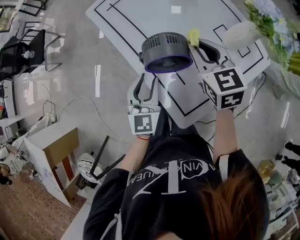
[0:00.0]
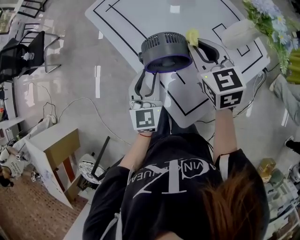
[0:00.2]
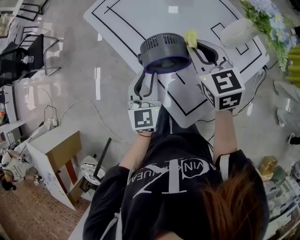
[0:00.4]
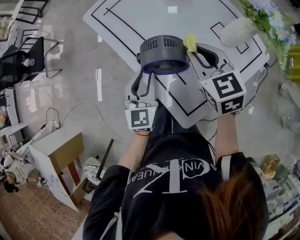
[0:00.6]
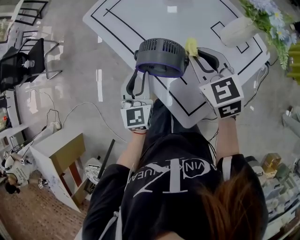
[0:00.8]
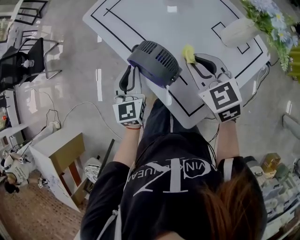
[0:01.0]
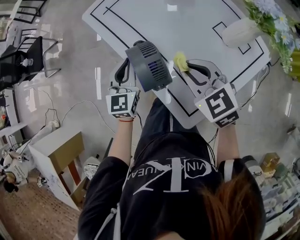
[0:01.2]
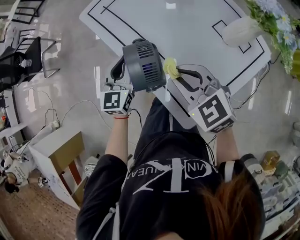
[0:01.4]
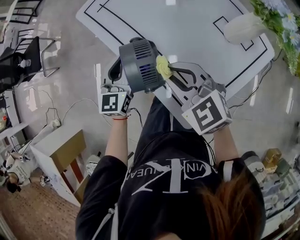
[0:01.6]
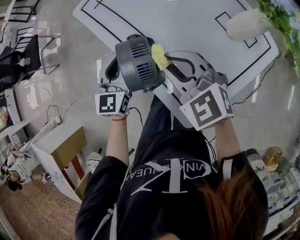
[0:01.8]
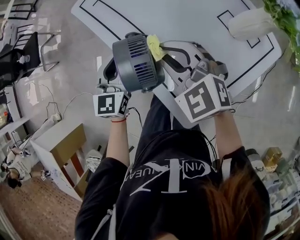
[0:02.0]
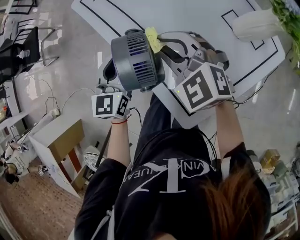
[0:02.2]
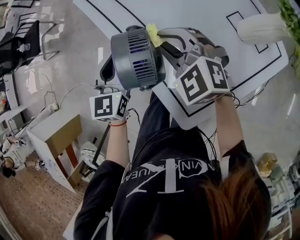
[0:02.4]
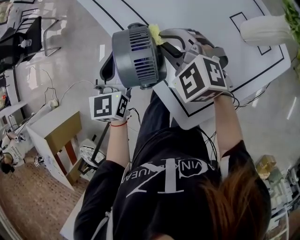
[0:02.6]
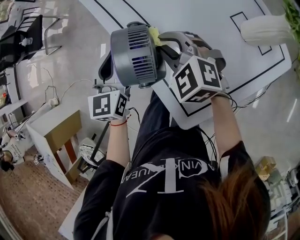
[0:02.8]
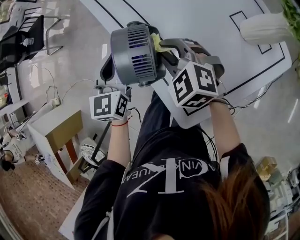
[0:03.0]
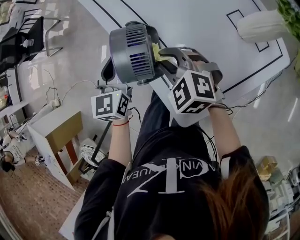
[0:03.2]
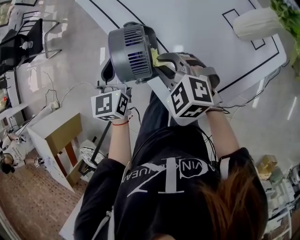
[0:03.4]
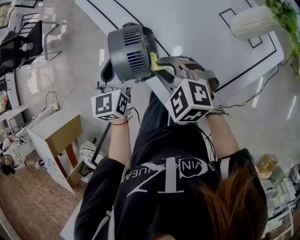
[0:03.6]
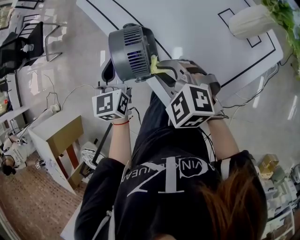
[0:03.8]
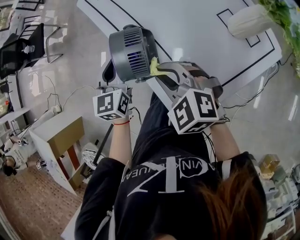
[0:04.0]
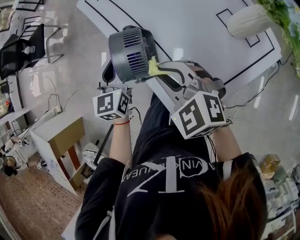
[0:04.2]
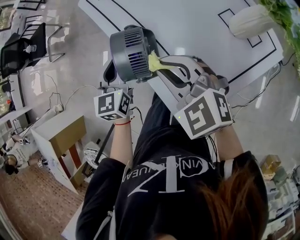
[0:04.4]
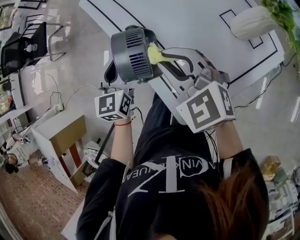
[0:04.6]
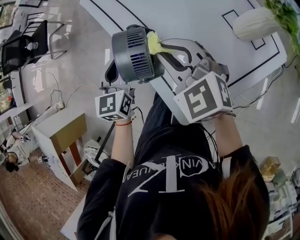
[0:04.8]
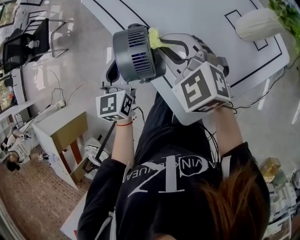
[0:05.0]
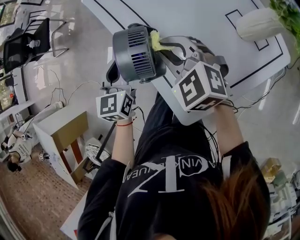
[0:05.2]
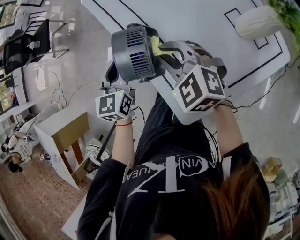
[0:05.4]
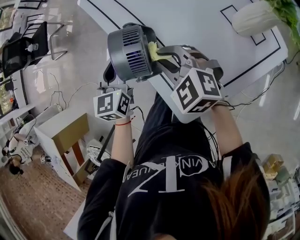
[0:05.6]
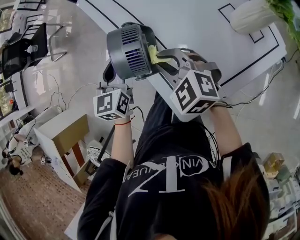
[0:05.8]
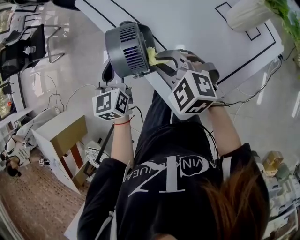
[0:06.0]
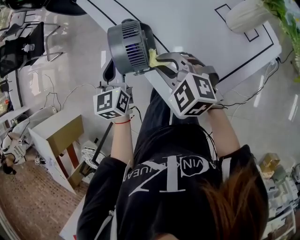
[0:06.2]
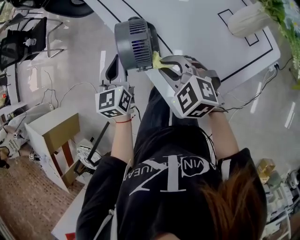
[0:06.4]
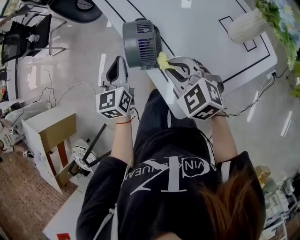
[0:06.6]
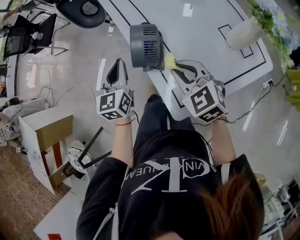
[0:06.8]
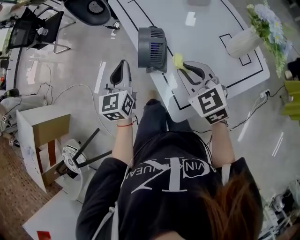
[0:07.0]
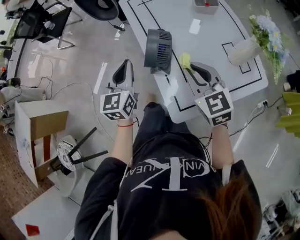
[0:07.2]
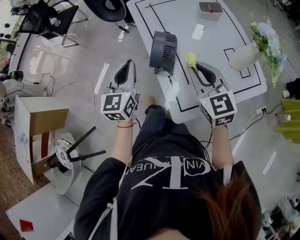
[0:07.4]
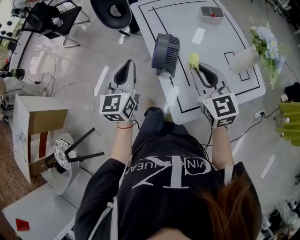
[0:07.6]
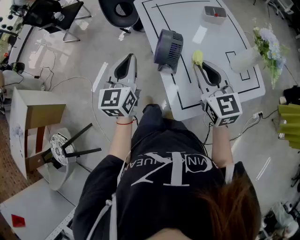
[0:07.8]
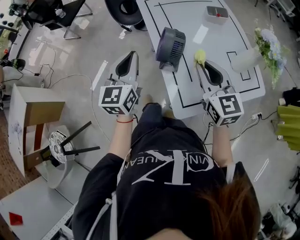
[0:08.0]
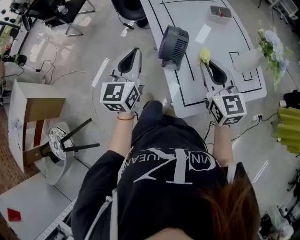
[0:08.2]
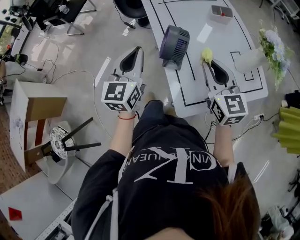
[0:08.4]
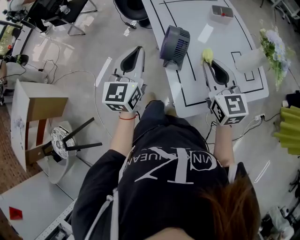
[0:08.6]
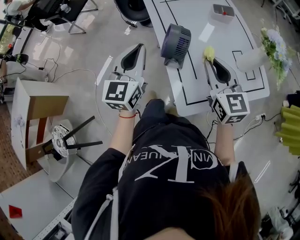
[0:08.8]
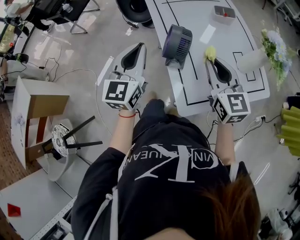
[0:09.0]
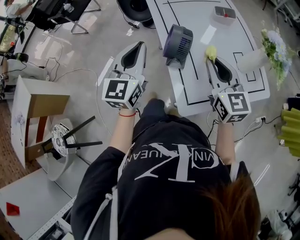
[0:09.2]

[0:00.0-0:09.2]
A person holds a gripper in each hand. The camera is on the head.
0:00.0 to 0:01.6: The left gripper goes about 10 cm forward and to the left, and closes its fingers. Meanwhile the right gripper moves to the left and backward, some 10 cm, and changes its angle by approximately 20 degrees.
0:01.6 to 0:03.0: The right gripper travels downward by about 10 cm.
0:03.0 to 0:04.6: The right gripper goes about 10 cm upward.
0:04.6 to 0:06.2: The right gripper heads downward, covering some 10 cm.
0:06.2 to 0:07.6: The left gripper travels upward, backward and to the left by roughly 15 cm. The right gripper goes about 15 cm upward, and turns by roughly 30 degrees.
0:07.6 to 0:09.2: The left gripper goes approximately 5 cm upward.

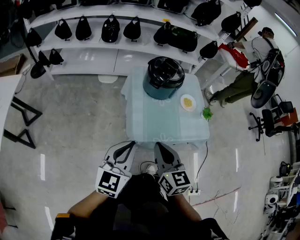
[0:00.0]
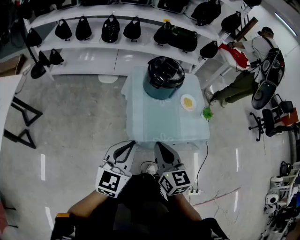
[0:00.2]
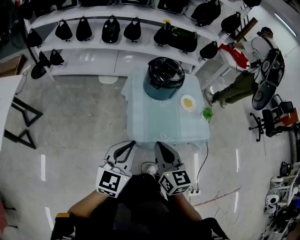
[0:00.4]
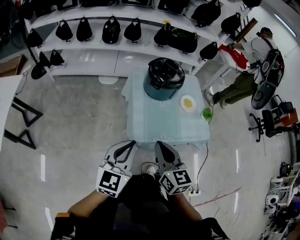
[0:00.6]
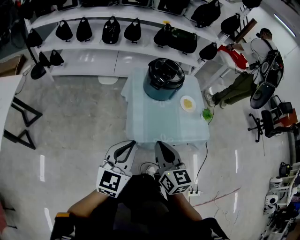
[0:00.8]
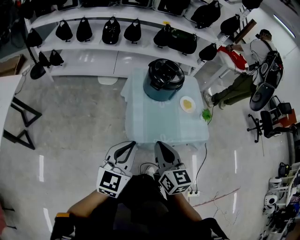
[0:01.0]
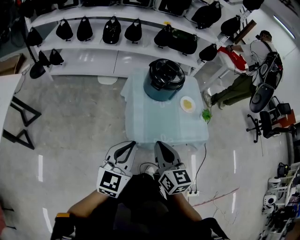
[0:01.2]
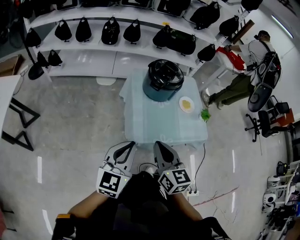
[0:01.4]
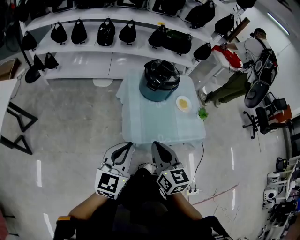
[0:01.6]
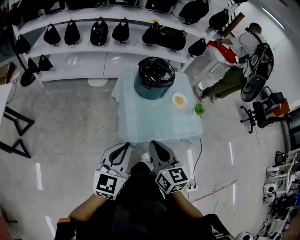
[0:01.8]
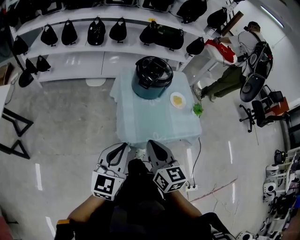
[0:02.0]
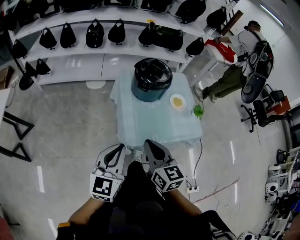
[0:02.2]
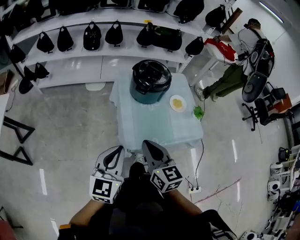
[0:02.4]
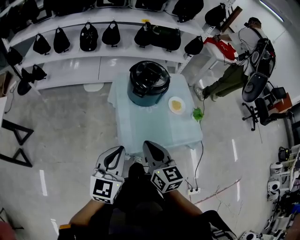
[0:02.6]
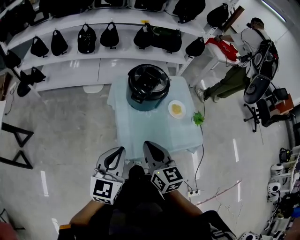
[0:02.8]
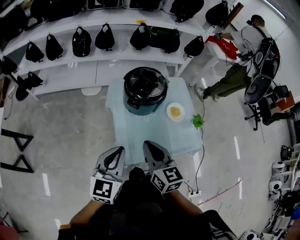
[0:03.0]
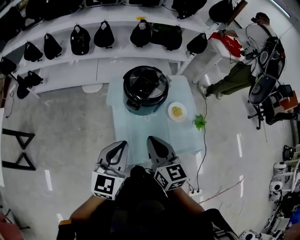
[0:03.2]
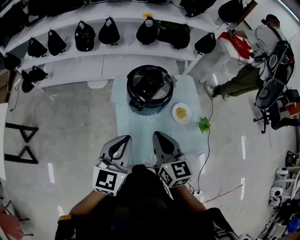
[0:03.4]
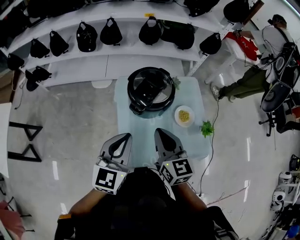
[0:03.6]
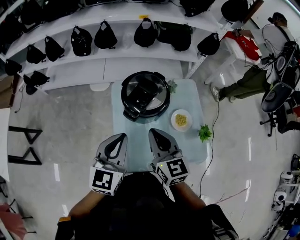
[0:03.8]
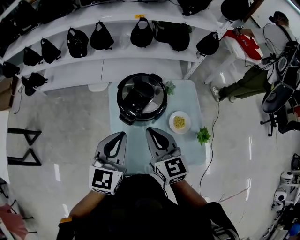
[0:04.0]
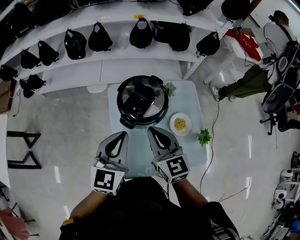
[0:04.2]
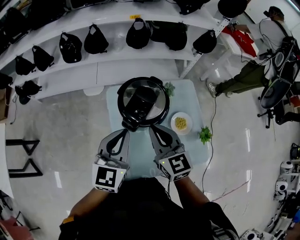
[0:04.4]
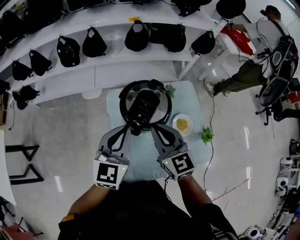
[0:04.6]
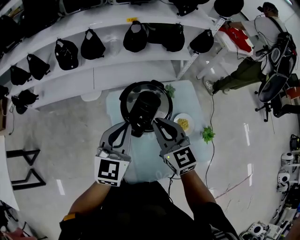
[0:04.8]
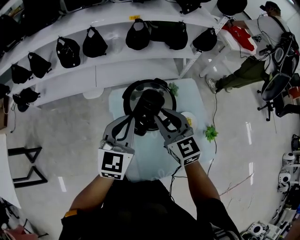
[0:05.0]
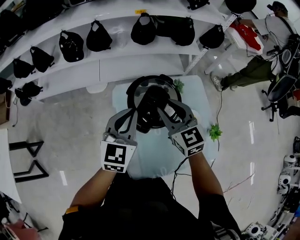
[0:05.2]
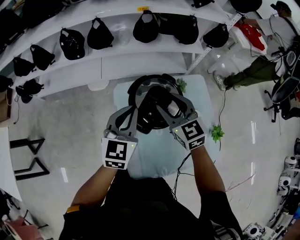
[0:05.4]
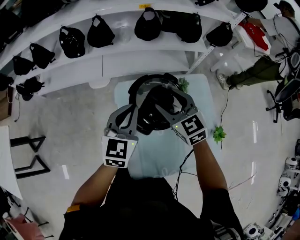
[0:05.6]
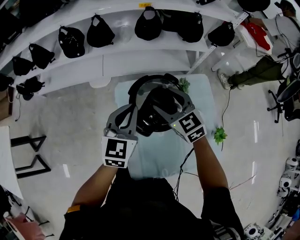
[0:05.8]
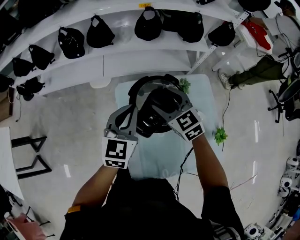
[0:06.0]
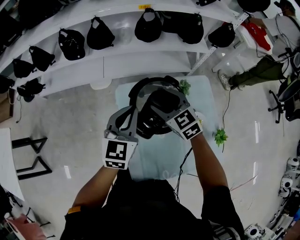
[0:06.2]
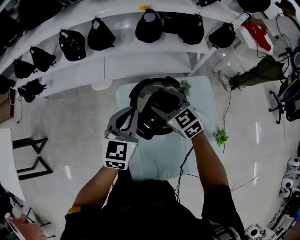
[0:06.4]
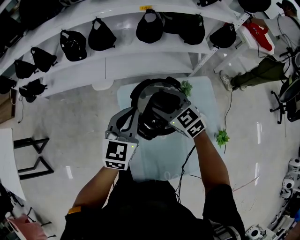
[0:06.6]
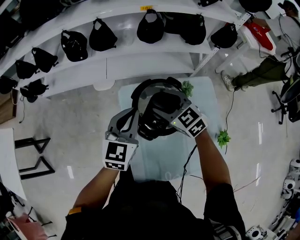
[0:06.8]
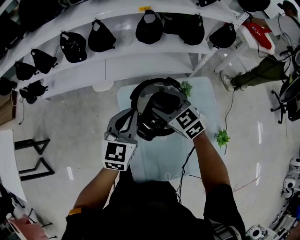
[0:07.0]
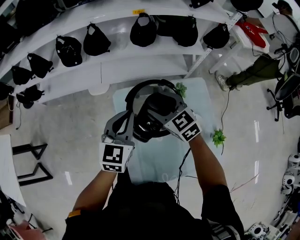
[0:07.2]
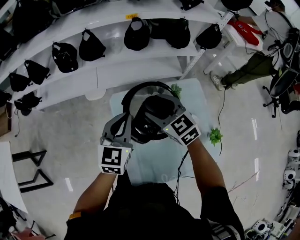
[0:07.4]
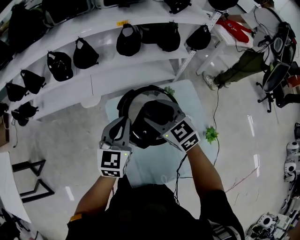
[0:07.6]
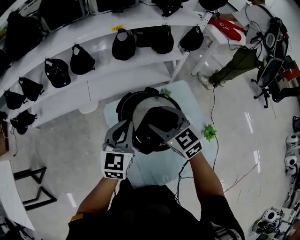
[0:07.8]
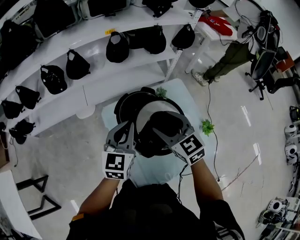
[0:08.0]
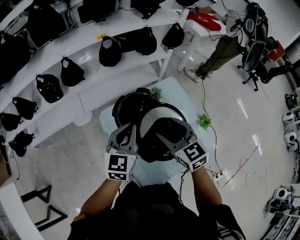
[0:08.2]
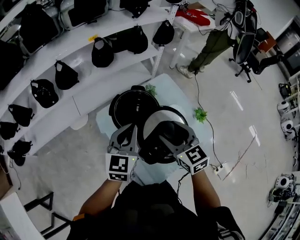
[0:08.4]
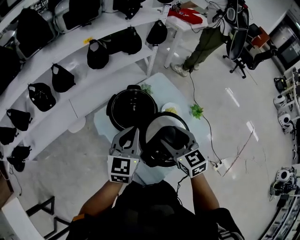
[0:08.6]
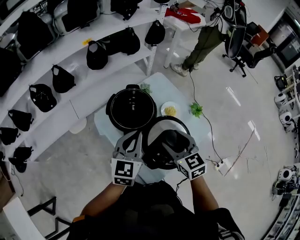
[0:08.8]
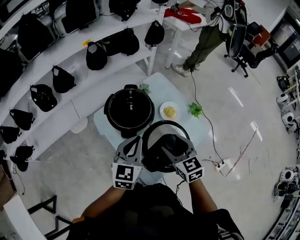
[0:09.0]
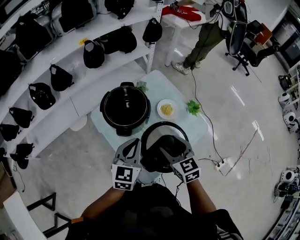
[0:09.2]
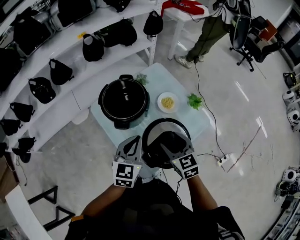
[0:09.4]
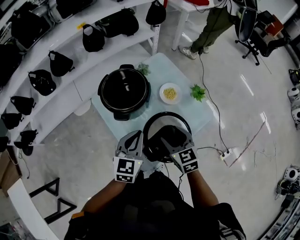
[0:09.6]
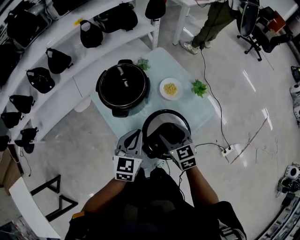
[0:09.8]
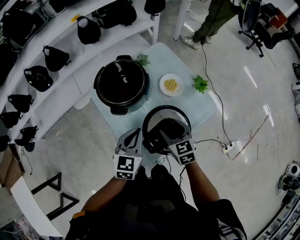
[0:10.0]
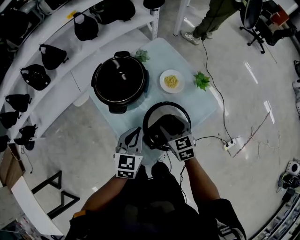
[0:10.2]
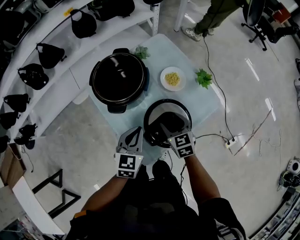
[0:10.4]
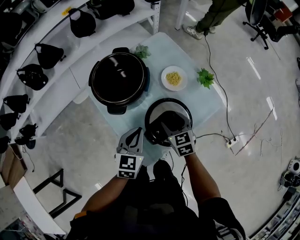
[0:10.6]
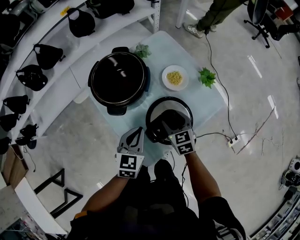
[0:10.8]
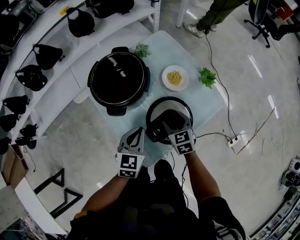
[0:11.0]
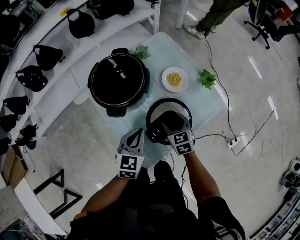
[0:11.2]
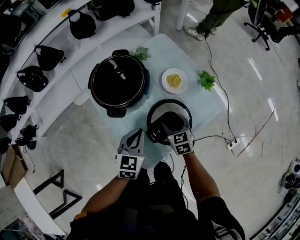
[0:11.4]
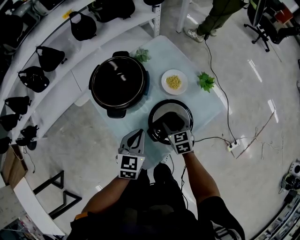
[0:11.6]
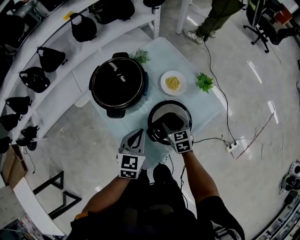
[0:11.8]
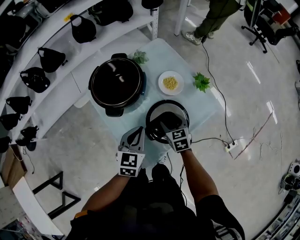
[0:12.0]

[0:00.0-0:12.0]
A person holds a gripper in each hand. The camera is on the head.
0:00.0 to 0:01.6: The grippers make only small movements.
0:01.6 to 0:03.0: Both grippers move forward, about 15 cm.
0:03.0 to 0:04.4: Both grippers travel together forward, some 20 cm.
0:04.4 to 0:06.0: The left gripper goes some 15 cm forward. Meanwhile the right gripper shifts about 15 cm forward and downward, changes its angle by roughly 20 degrees, and opens.
0:06.0 to 0:07.6: The right gripper ends up roughly 5 cm from where it was.
0:07.6 to 0:09.0: The right gripper changes place by roughly 25 cm, and swivels approximately 40 degrees; the left gripper changes place by about 15 cm, and swivels roughly 20 degrees.
0:09.0 to 0:10.4: Both grippers travel together downward, approximately 15 cm.
0:10.4 to 0:12.0: The right gripper changes place by approximately 5 cm.

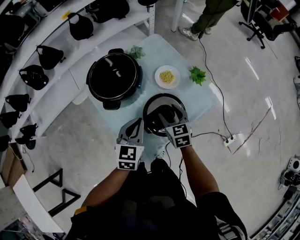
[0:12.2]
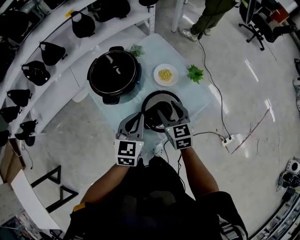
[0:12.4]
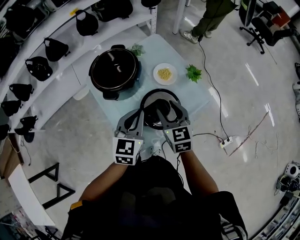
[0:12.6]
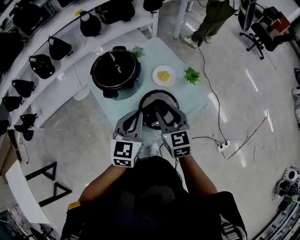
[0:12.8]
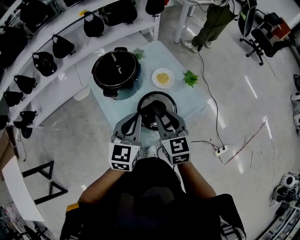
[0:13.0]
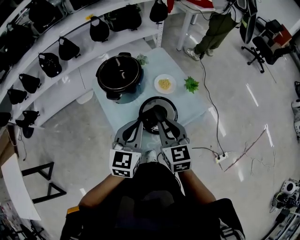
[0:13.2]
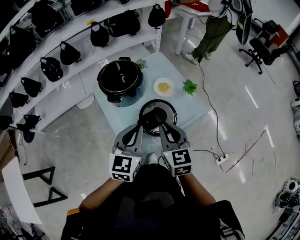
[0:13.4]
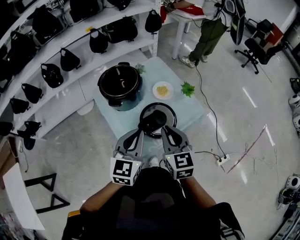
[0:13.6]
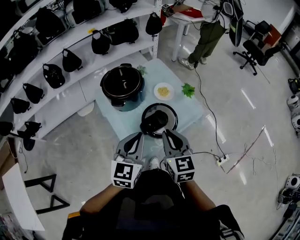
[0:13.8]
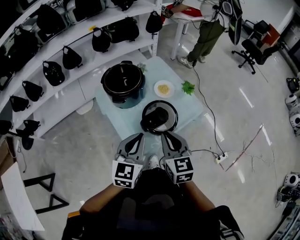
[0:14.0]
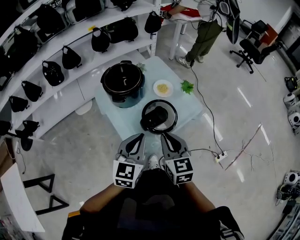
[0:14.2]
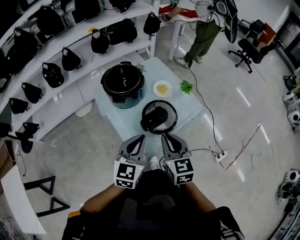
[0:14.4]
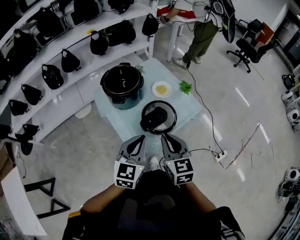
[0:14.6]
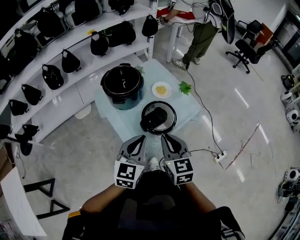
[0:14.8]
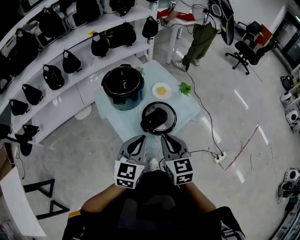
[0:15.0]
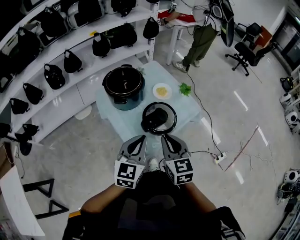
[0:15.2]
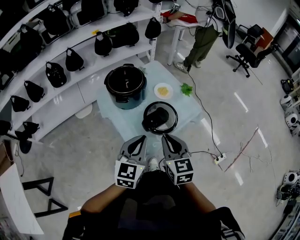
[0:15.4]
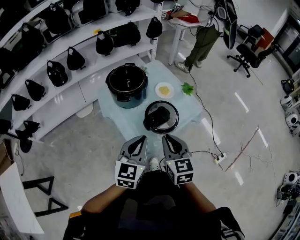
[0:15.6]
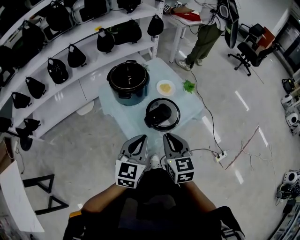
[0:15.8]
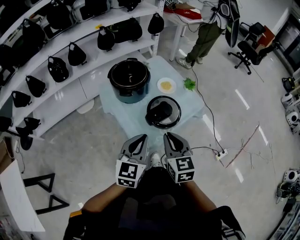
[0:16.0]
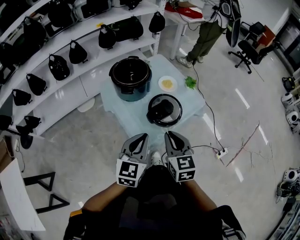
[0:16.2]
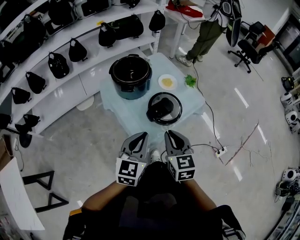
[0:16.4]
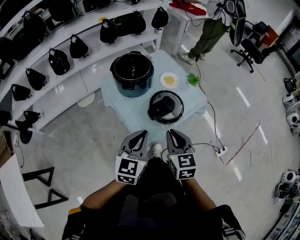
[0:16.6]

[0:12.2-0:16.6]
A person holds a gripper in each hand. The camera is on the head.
0:12.2 to 0:13.6: The grippers both shift upward and backward by roughly 20 cm. The right gripper closes.
0:13.6 to 0:15.2: Both grippers move backward, roughly 10 cm.
0:15.2 to 0:16.6: The left gripper changes place by some 5 cm.
